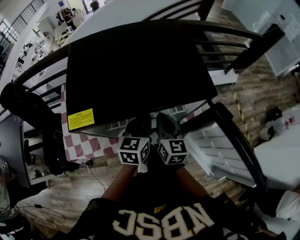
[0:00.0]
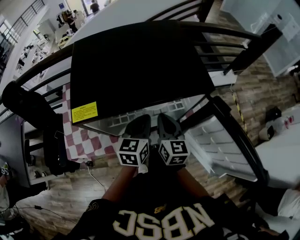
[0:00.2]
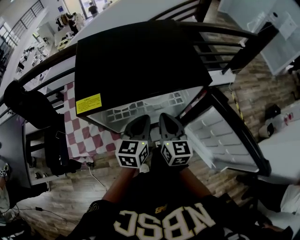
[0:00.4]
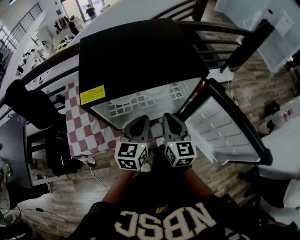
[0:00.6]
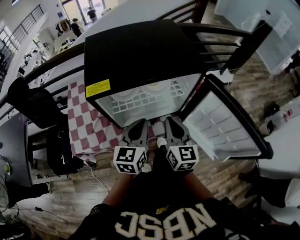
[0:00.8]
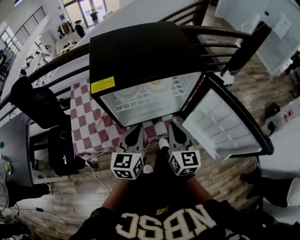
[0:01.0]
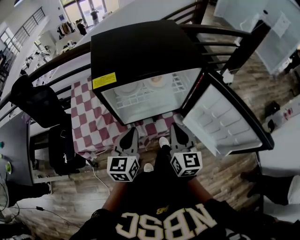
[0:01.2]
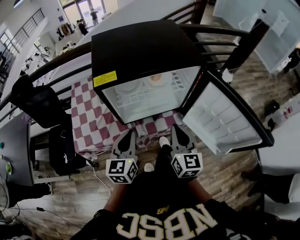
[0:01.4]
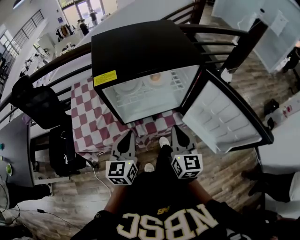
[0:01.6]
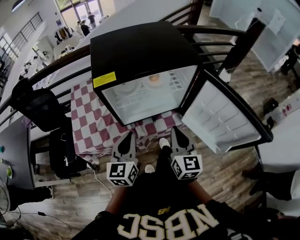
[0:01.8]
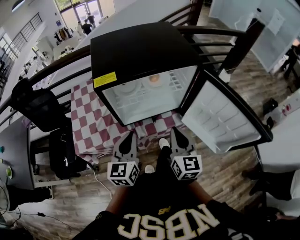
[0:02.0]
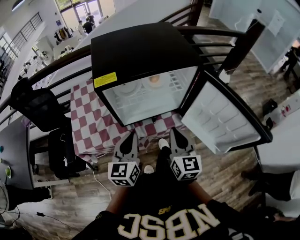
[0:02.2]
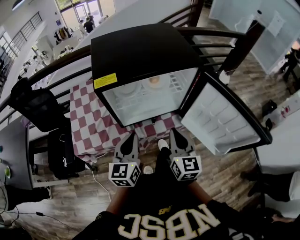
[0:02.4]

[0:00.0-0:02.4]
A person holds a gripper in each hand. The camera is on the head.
0:00.0 to 0:01.2: The right gripper shifts about 15 cm backward. Meanwhile the left gripper shifts roughly 20 cm backward and to the left.
0:01.2 to 0:02.4: The grippers stay close to where they were, moving slightly.

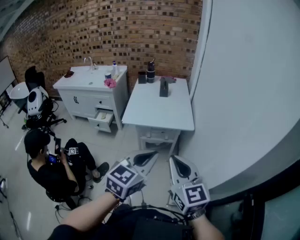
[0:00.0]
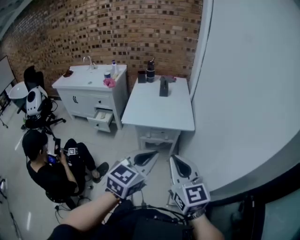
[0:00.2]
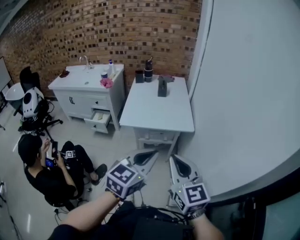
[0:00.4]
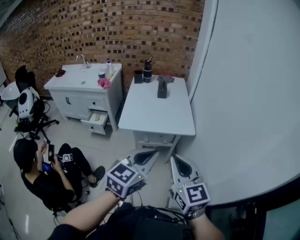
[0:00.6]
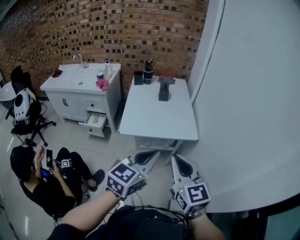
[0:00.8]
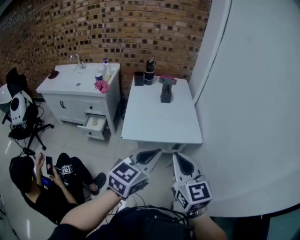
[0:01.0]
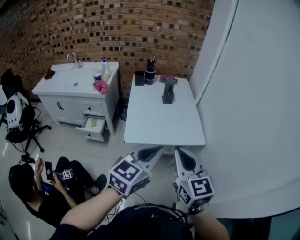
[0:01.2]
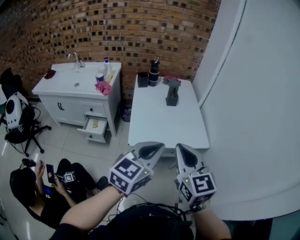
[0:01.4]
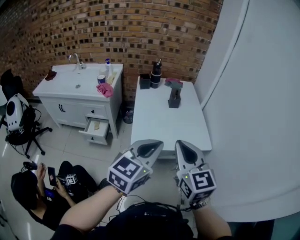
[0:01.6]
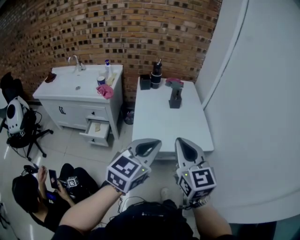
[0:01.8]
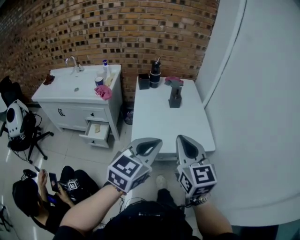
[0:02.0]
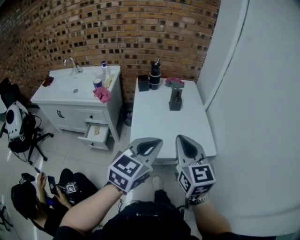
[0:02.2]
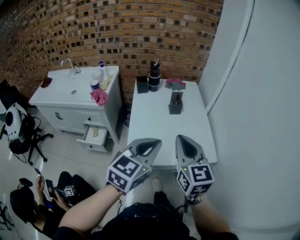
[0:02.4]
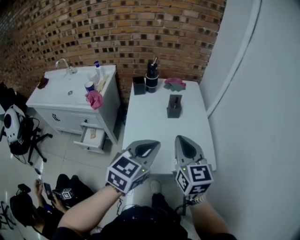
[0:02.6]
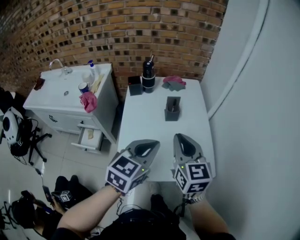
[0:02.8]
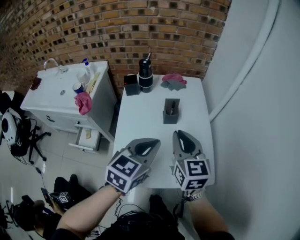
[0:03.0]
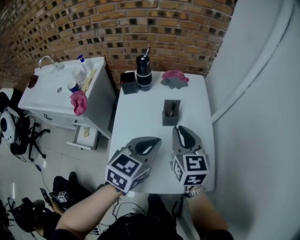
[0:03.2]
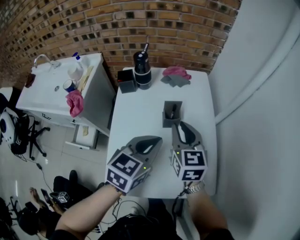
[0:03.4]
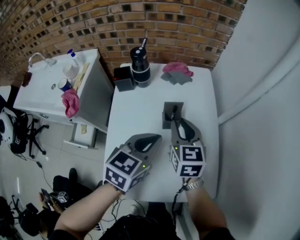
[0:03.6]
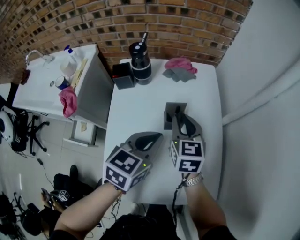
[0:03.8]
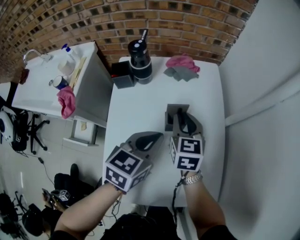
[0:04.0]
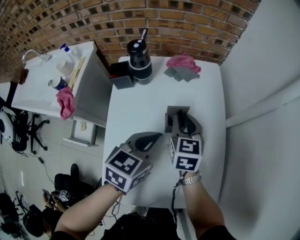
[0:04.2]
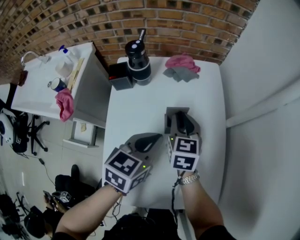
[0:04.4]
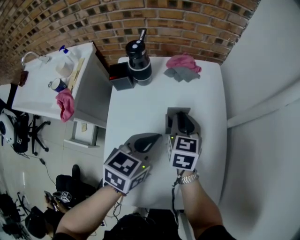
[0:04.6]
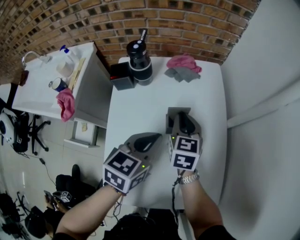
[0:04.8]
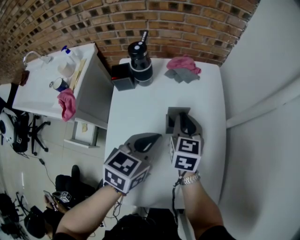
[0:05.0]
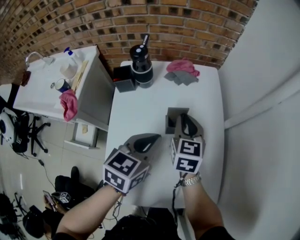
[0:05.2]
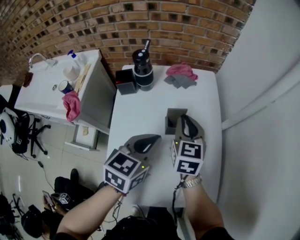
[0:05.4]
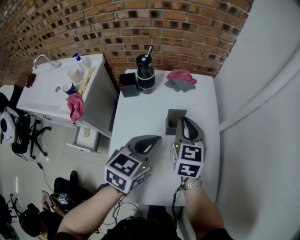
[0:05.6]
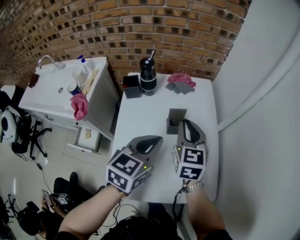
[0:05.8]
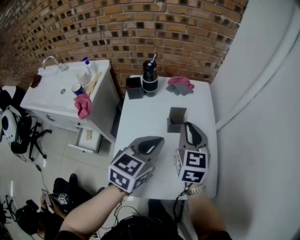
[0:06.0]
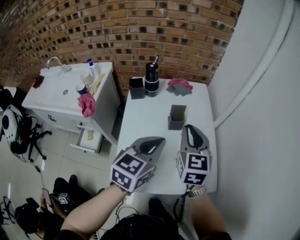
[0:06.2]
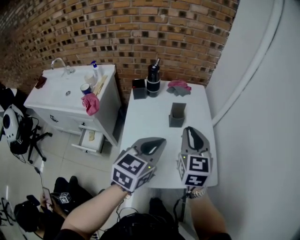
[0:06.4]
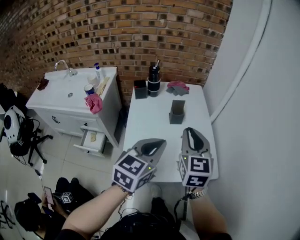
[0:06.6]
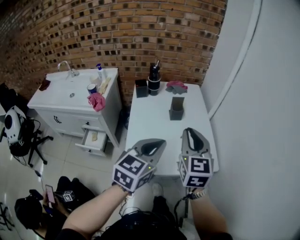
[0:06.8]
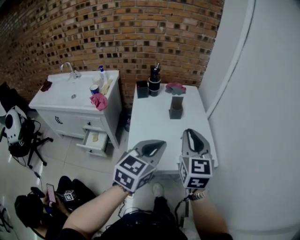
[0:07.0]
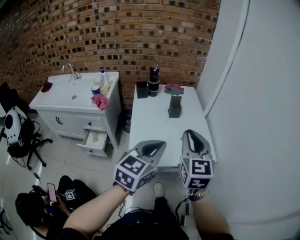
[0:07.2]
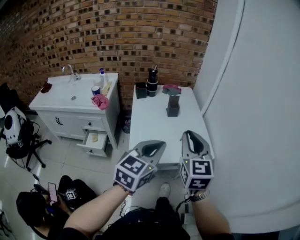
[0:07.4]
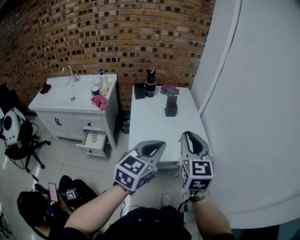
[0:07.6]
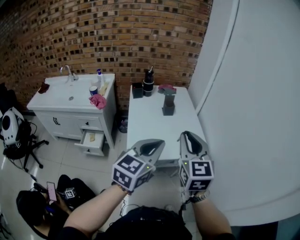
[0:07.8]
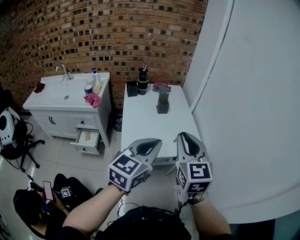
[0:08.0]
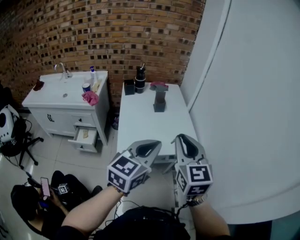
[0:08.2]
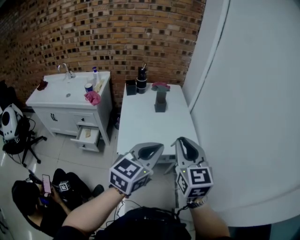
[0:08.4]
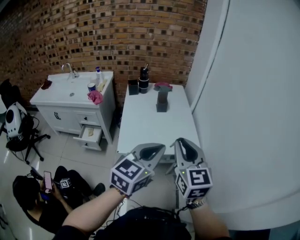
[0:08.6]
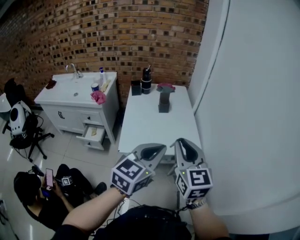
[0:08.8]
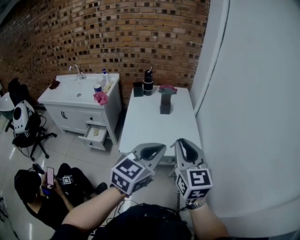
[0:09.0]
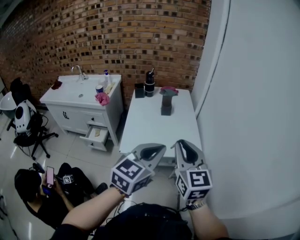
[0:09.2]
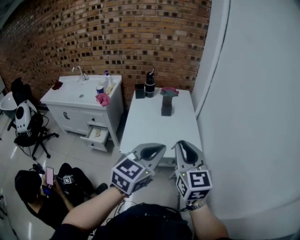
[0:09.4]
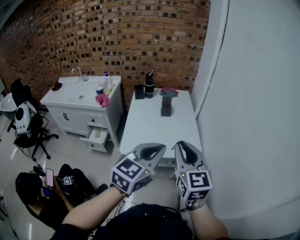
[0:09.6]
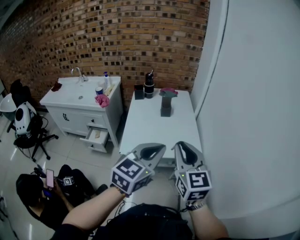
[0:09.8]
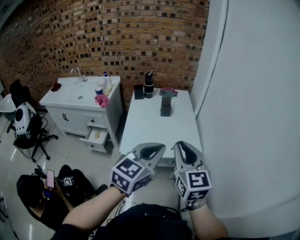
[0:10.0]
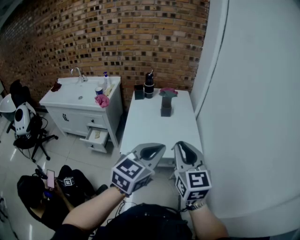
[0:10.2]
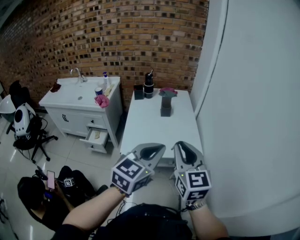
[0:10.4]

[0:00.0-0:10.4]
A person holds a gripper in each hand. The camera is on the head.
0:00.0 to 0:01.4: The grippers both shift forward and to the left by about 30 cm.
0:01.4 to 0:03.0: The two grippers go approximately 40 cm forward.
0:03.0 to 0:04.4: Both grippers travel together forward and downward, approximately 25 cm.
0:04.4 to 0:06.0: The right gripper heads upward and backward, covering some 20 cm, while the left gripper travels backward and upward by approximately 15 cm.
0:06.0 to 0:07.4: Both grippers travel together backward, some 35 cm.
0:07.4 to 0:09.0: Both grippers move to the right and backward, about 15 cm.
0:09.0 to 0:10.4: The two grippers keep their place.

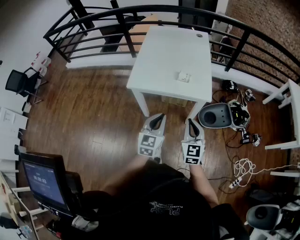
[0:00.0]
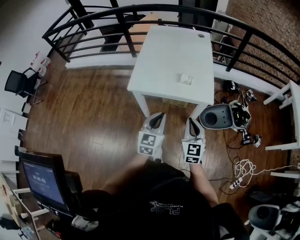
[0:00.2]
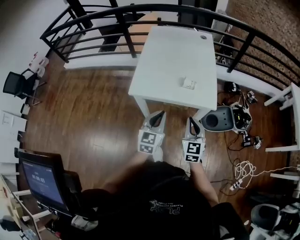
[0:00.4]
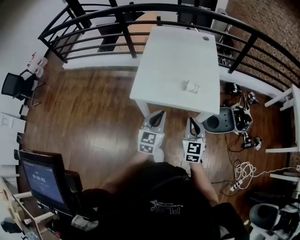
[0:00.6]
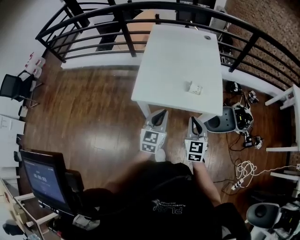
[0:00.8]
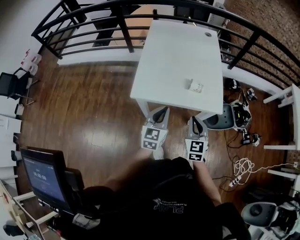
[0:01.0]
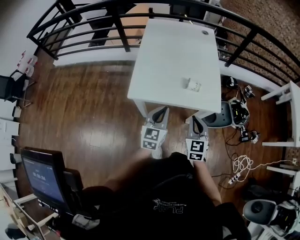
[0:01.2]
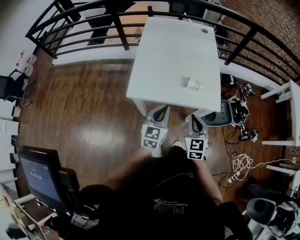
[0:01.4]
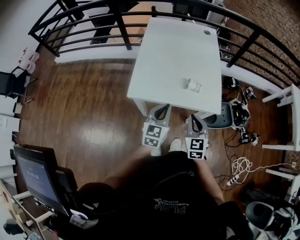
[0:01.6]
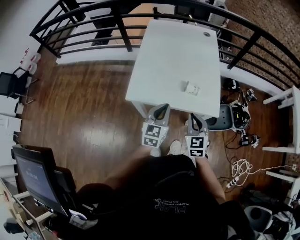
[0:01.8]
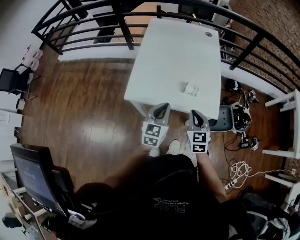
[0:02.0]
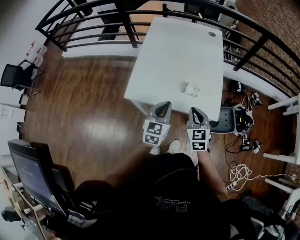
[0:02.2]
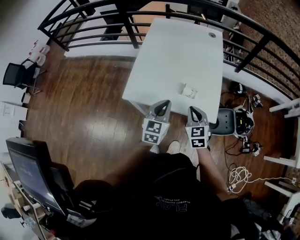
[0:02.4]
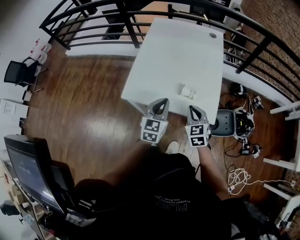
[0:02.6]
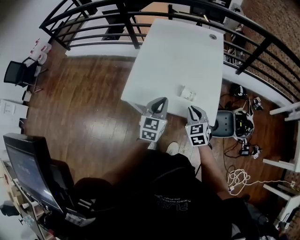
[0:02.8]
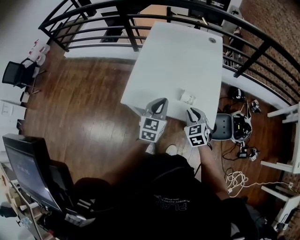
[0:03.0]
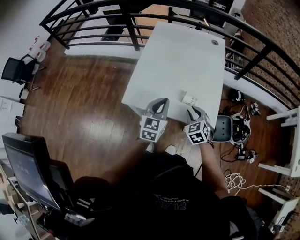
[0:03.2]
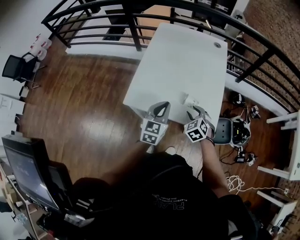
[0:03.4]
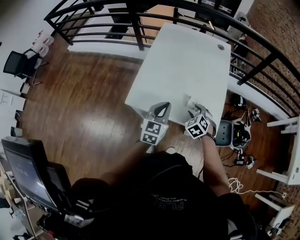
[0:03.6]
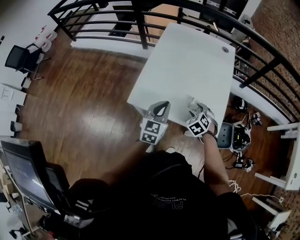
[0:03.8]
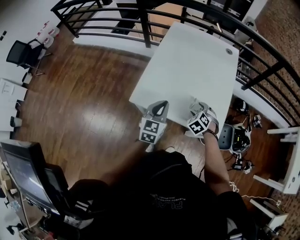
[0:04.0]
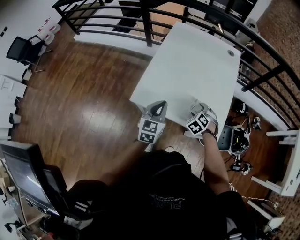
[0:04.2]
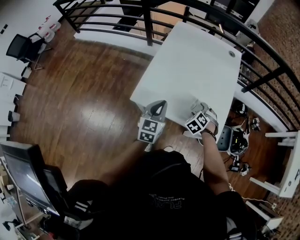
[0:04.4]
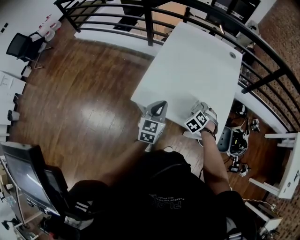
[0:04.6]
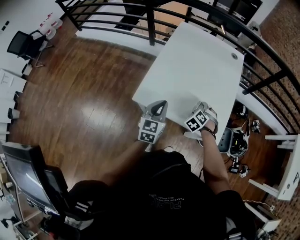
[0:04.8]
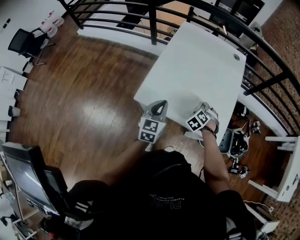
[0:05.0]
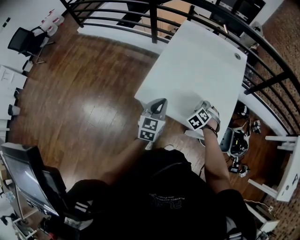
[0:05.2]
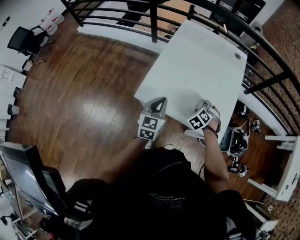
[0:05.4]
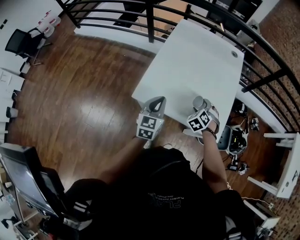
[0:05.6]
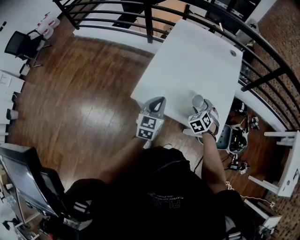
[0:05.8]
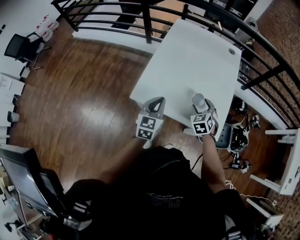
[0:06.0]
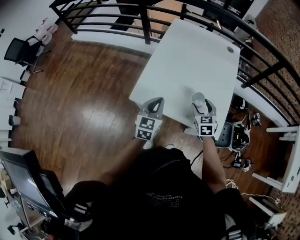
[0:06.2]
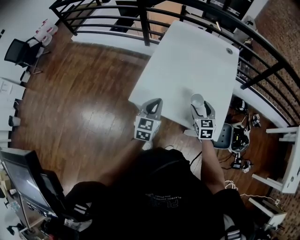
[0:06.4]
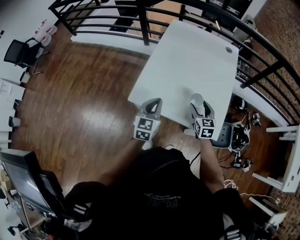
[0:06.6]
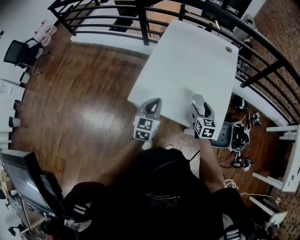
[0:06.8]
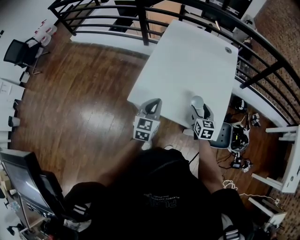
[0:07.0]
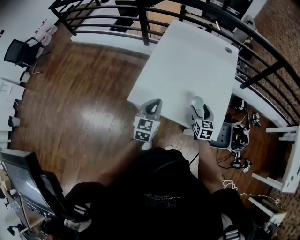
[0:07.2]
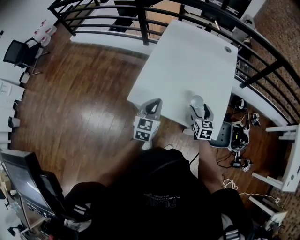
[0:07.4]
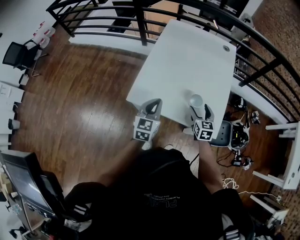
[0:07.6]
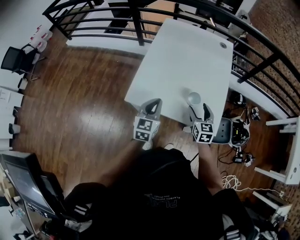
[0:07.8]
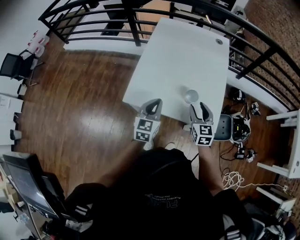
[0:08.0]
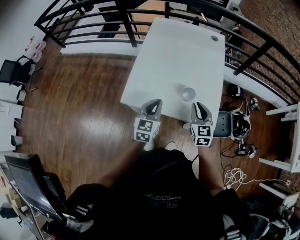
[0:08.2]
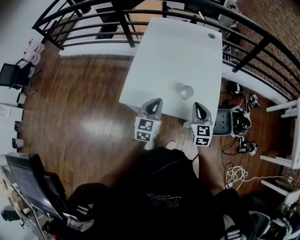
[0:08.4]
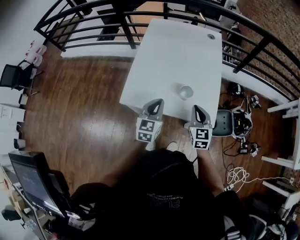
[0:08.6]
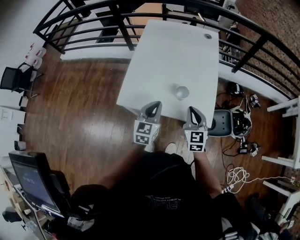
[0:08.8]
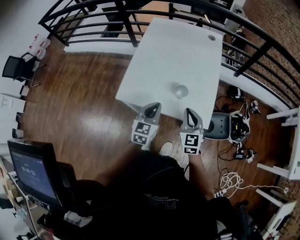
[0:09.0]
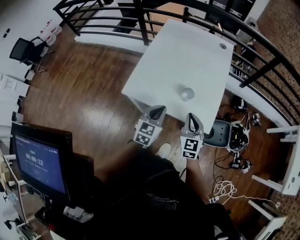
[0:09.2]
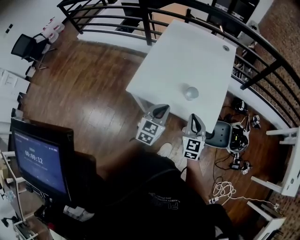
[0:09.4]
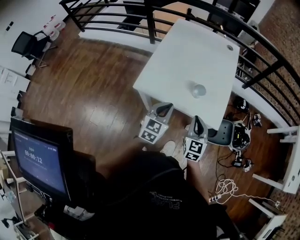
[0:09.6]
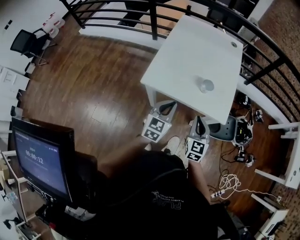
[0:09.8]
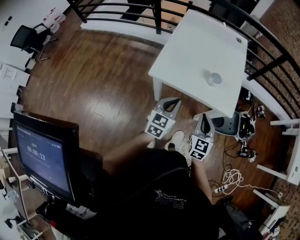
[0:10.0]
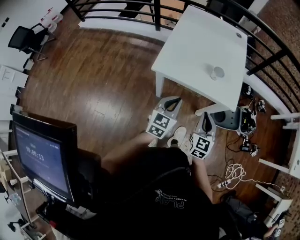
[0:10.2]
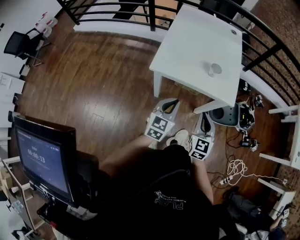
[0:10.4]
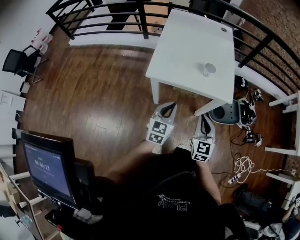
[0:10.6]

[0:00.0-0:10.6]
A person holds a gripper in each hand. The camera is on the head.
0:00.0 to 0:01.6: The right gripper shifts some 15 cm forward and to the left; the left gripper goes roughly 15 cm forward.
0:01.6 to 0:03.0: Both grippers move forward, approximately 10 cm. The right gripper changes its angle by some 20 degrees.
0:03.0 to 0:04.6: The left gripper moves to the left, about 5 cm. Meanwhile the right gripper moves downward and forward, about 10 cm, changes its angle by some 40 degrees, and opens.
0:04.6 to 0:06.0: The right gripper changes its angle by roughly 30 degrees.
0:06.0 to 0:07.6: The right gripper changes its angle by some 30 degrees.
0:07.6 to 0:09.0: The left gripper heads to the right, covering some 10 cm. Meanwhile the right gripper heads upward and backward, covering about 10 cm, and closes up.
0:09.0 to 0:10.6: The right gripper moves backward, some 20 cm. Meanwhile the left gripper shifts about 20 cm backward and to the left.
